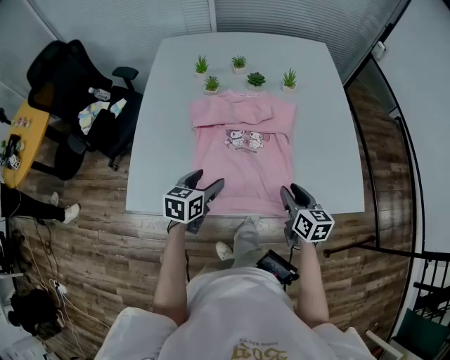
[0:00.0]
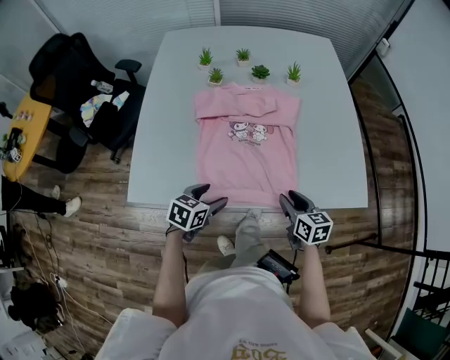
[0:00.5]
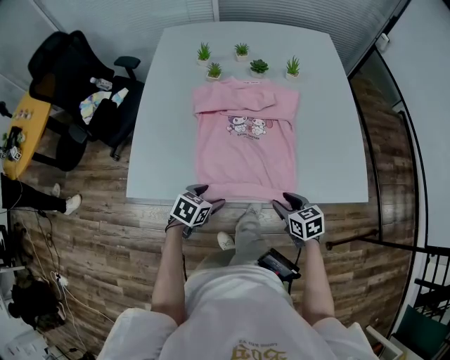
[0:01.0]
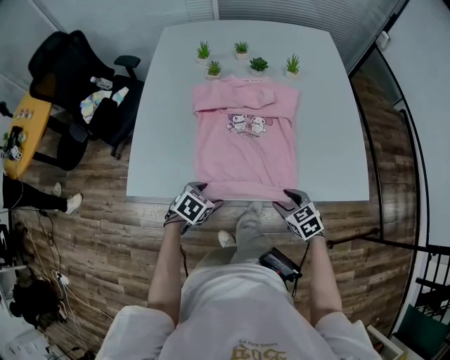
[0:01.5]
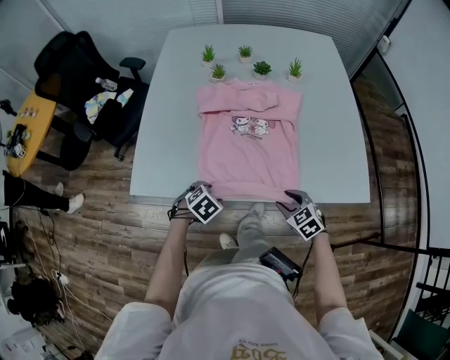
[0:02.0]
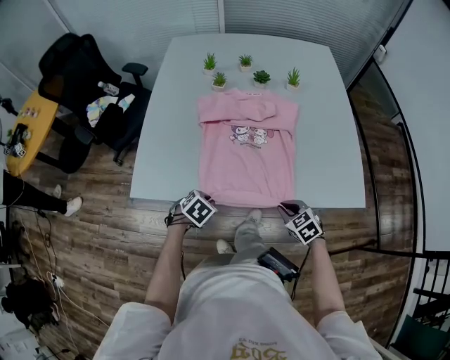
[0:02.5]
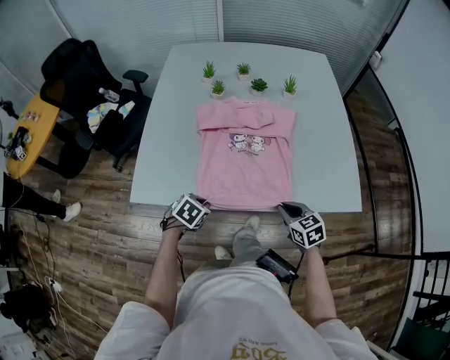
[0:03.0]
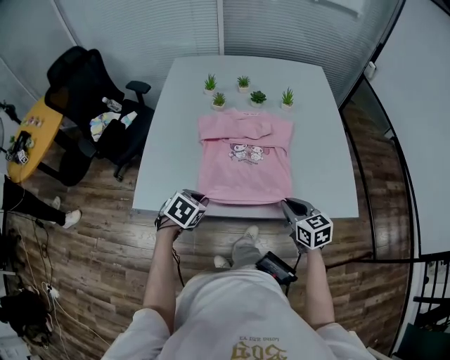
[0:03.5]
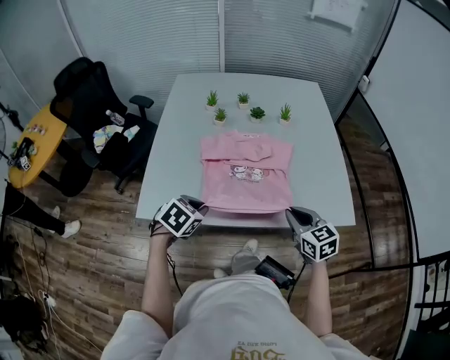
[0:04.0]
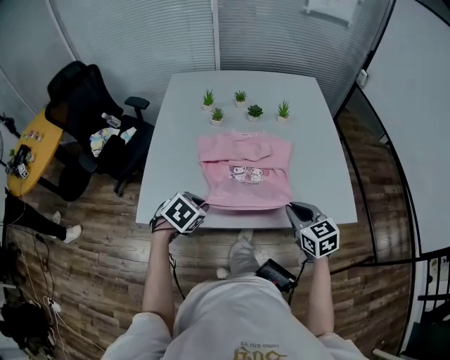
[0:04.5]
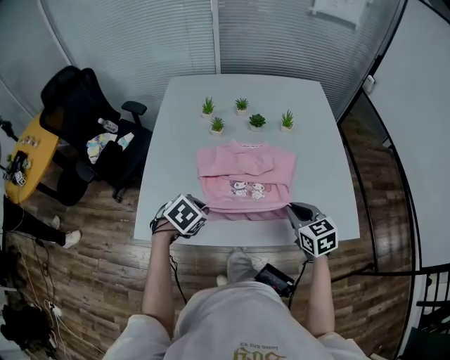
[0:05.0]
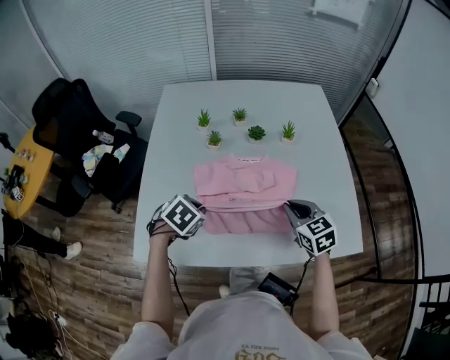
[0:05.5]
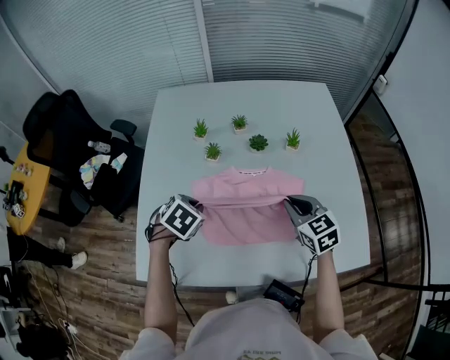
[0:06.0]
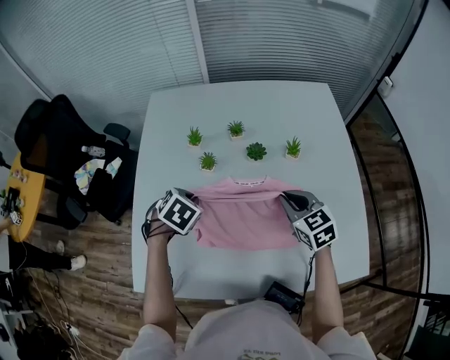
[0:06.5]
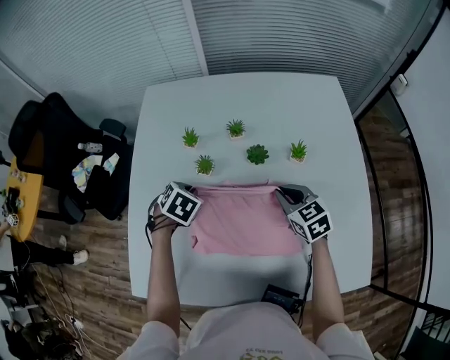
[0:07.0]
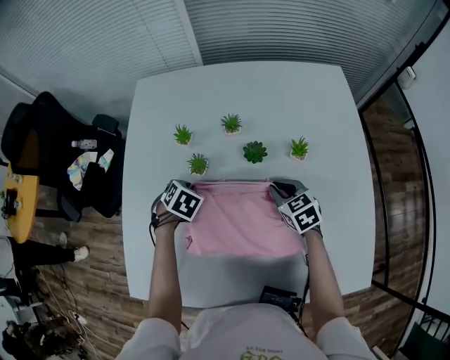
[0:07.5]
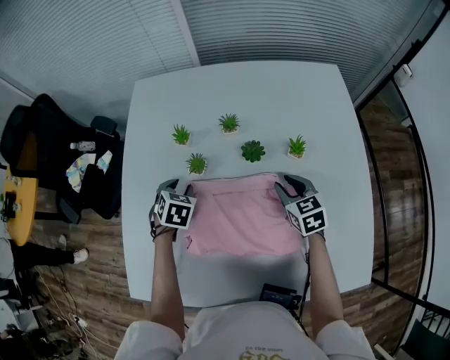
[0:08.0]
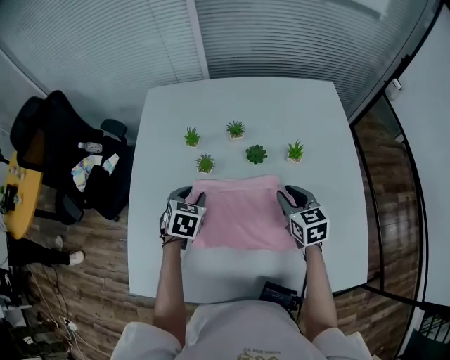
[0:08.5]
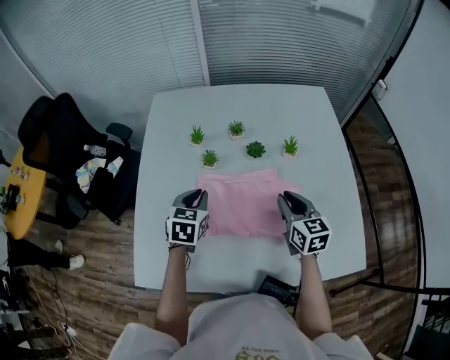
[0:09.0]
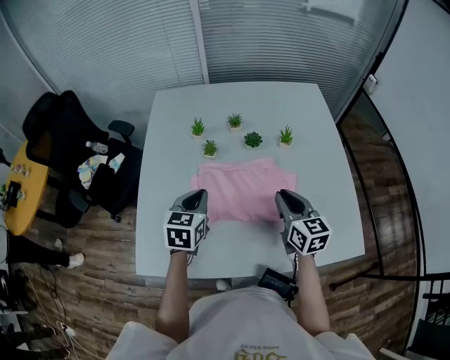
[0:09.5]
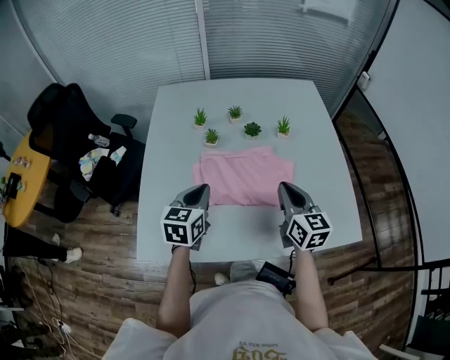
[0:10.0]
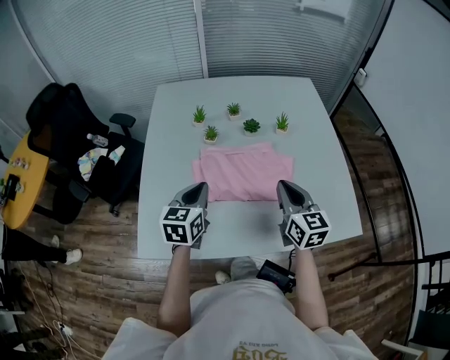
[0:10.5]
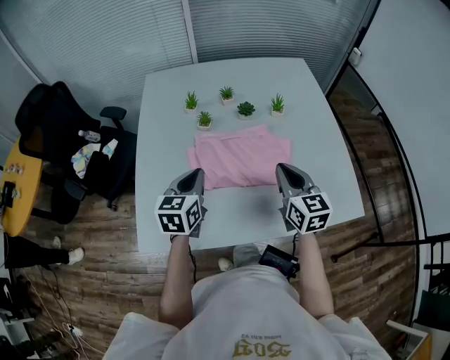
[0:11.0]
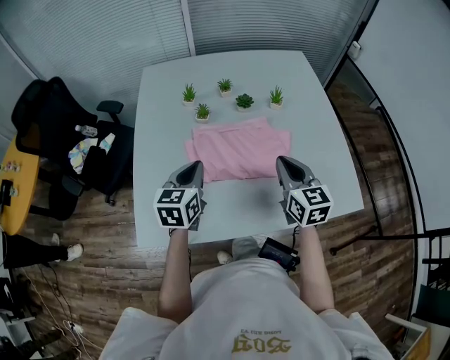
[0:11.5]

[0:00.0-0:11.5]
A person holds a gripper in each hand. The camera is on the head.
0:00.0 to 0:02.0: The grippers both shift downward and backward by about 15 cm. The left gripper angles its fingers downward, by some 40 degrees. Meanwhile the right gripper rotates around the line of its fingers by roughly 40 degrees, counterclockwise from behind.
0:02.0 to 0:04.0: The grippers both shift upward by some 20 cm. The left gripper closes. Meanwhile the right gripper changes its angle by some 30 degrees, and closes up.
0:04.0 to 0:06.0: Both grippers travel together forward, roughly 25 cm.
0:06.0 to 0:07.5: Both grippers travel together forward and downward, roughly 20 cm.
0:07.5 to 0:09.5: The left gripper moves upward and backward, approximately 25 cm, and angles its fingers upward, by approximately 40 degrees, while the right gripper moves backward and upward, approximately 25 cm, and turns by some 30 degrees.
0:09.5 to 0:11.5: Both grippers move backward, roughly 5 cm.

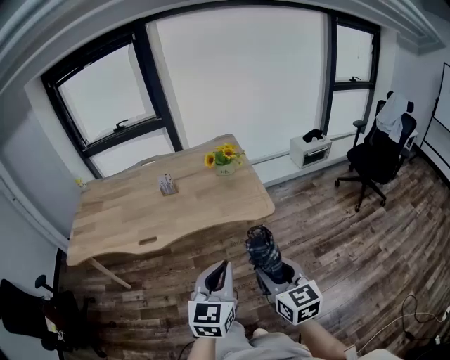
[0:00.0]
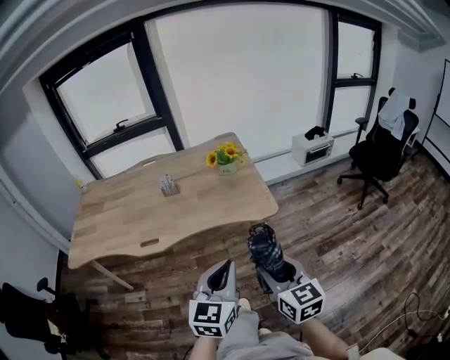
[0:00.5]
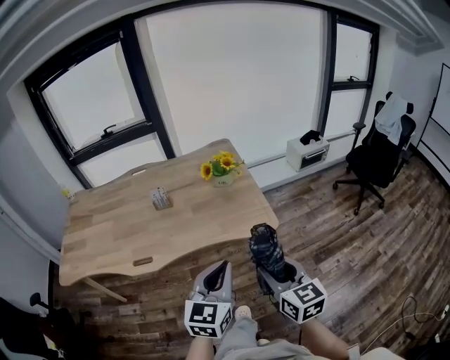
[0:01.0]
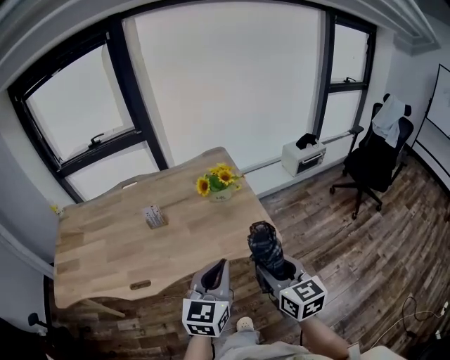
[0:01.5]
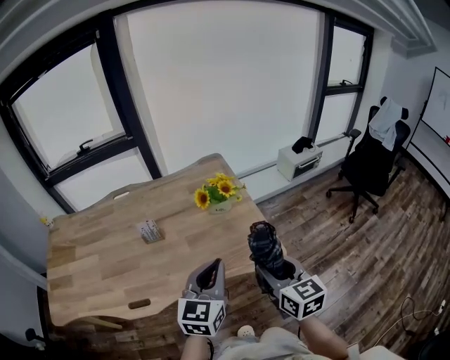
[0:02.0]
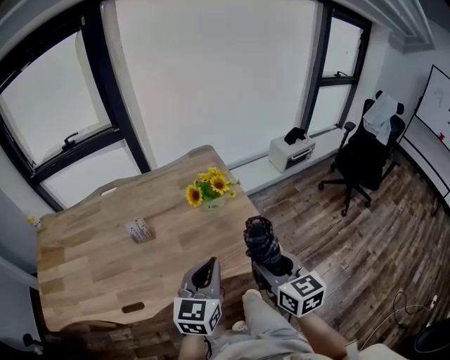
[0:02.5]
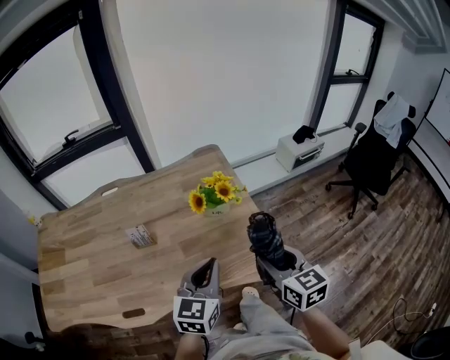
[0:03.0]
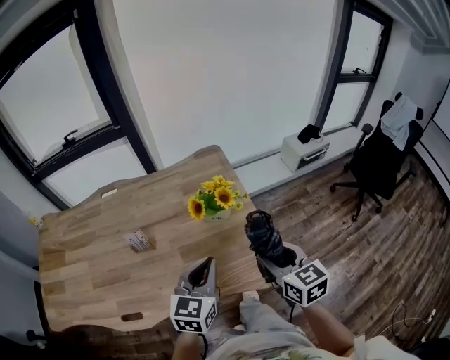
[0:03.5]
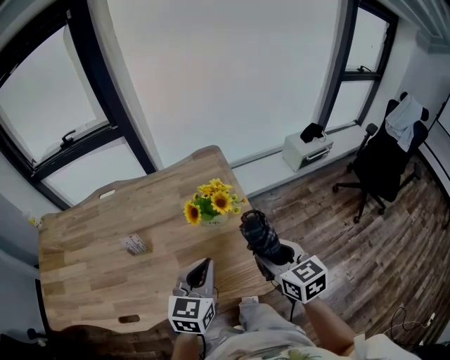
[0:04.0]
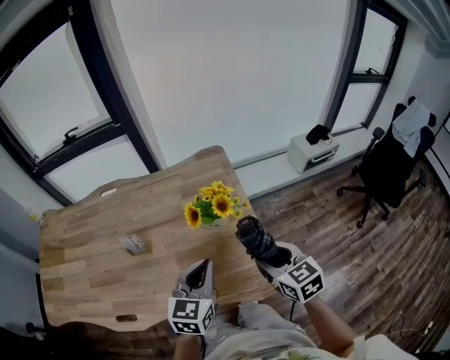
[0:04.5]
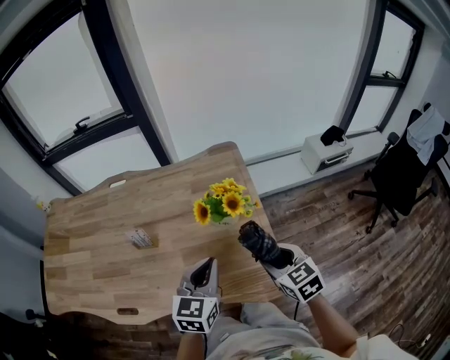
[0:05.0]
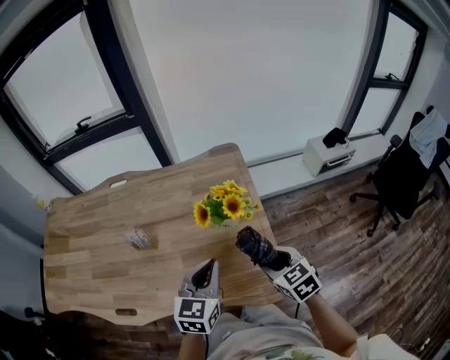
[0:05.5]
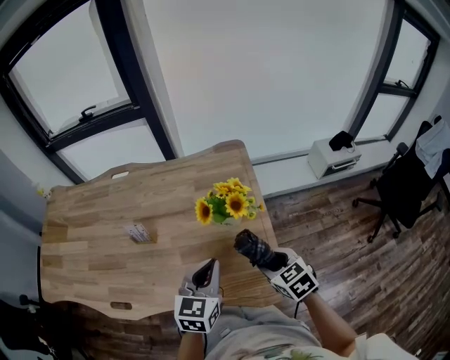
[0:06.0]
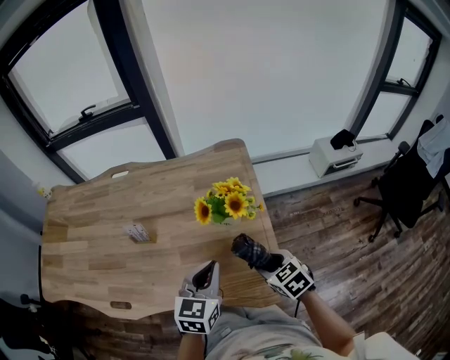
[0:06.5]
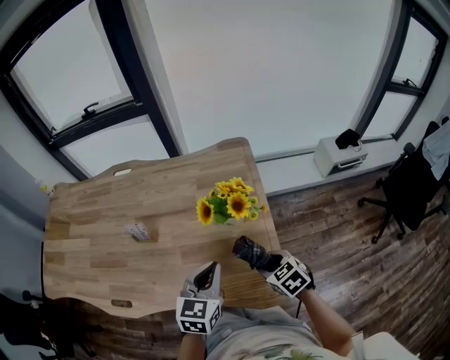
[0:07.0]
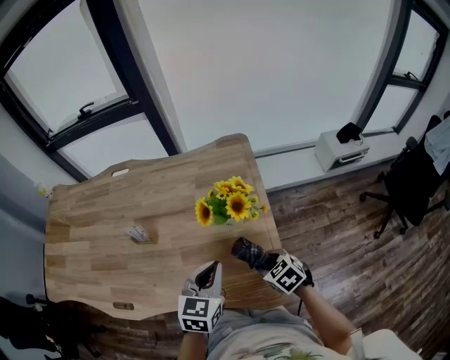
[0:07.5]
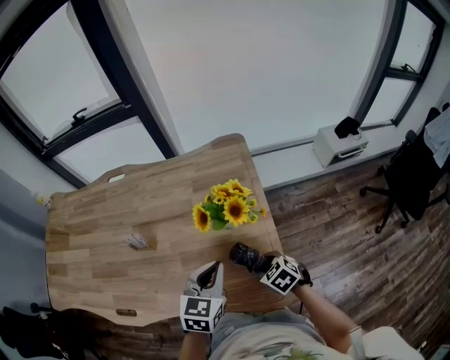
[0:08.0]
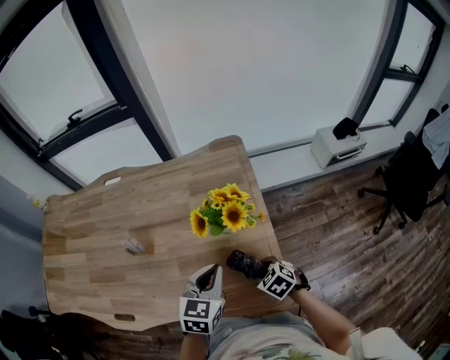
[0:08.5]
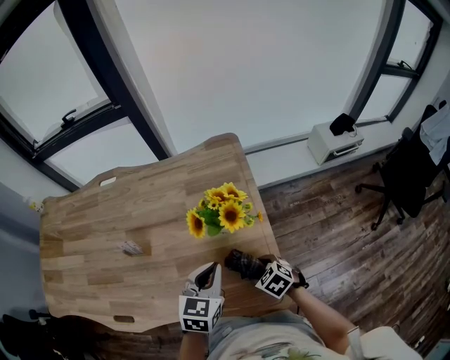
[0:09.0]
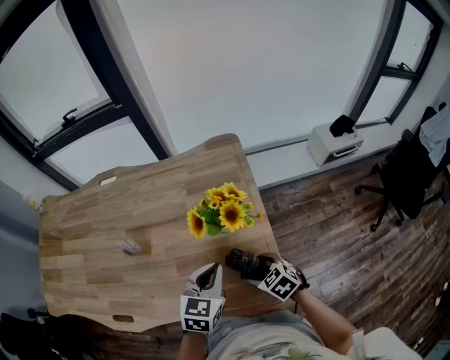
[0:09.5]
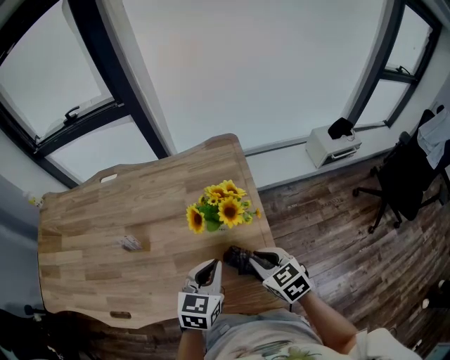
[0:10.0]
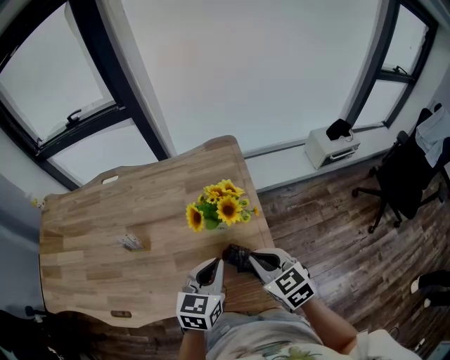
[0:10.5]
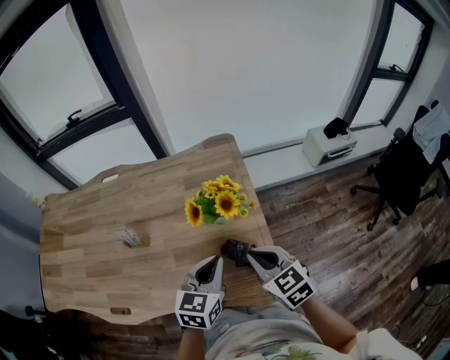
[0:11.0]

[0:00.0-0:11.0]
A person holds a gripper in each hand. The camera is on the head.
0:00.0 to 0:02.0: Both grippers move forward, roughly 30 cm.
0:02.0 to 0:03.5: Both grippers move forward, about 15 cm.
0:03.5 to 0:05.5: The right gripper goes approximately 10 cm downward and forward, and rotates roughly 30 degrees. Meanwhile the left gripper goes roughly 5 cm forward.
0:05.5 to 0:07.5: The left gripper shifts by some 5 cm; the right gripper shifts approximately 10 cm downward.
0:07.5 to 0:09.0: The right gripper heads downward, covering roughly 5 cm.
0:09.0 to 0:11.0: The left gripper moves roughly 5 cm. Meanwhile the right gripper is displaced upward by about 20 cm, turns by some 30 degrees, and closes.

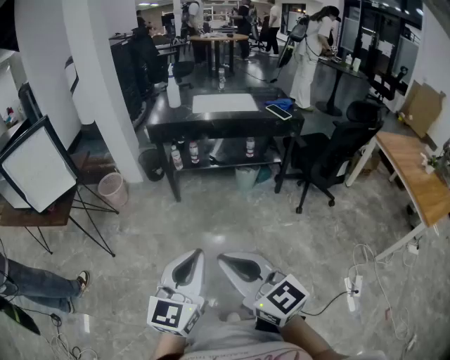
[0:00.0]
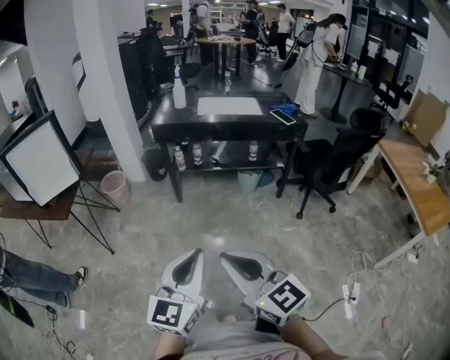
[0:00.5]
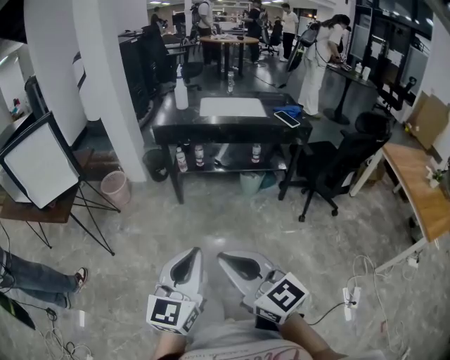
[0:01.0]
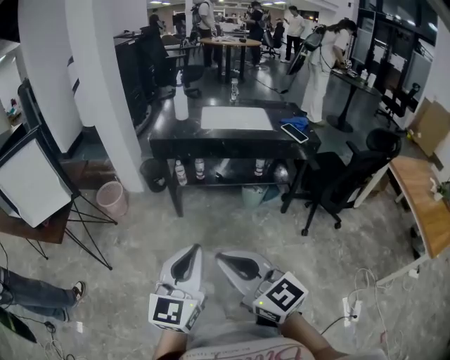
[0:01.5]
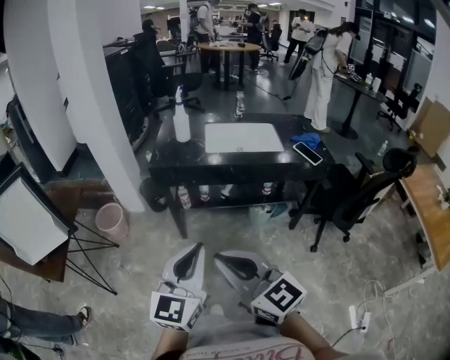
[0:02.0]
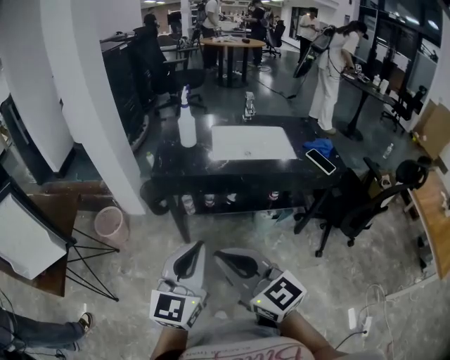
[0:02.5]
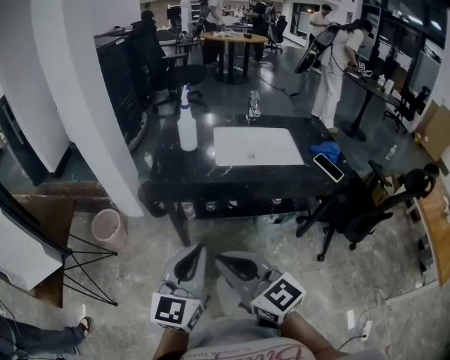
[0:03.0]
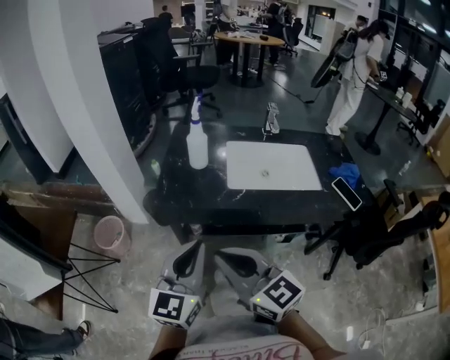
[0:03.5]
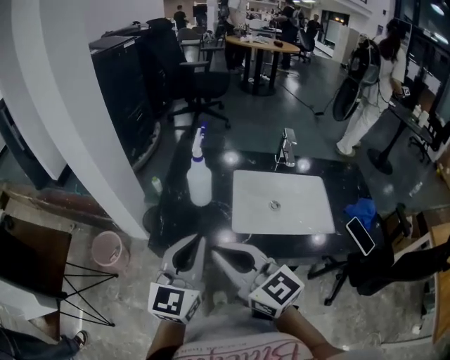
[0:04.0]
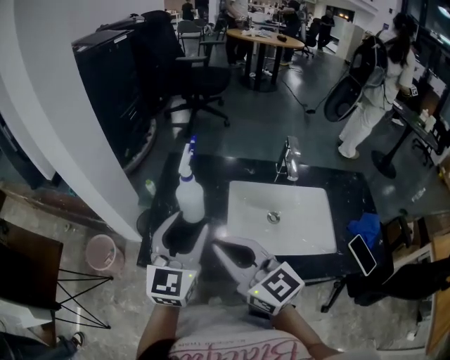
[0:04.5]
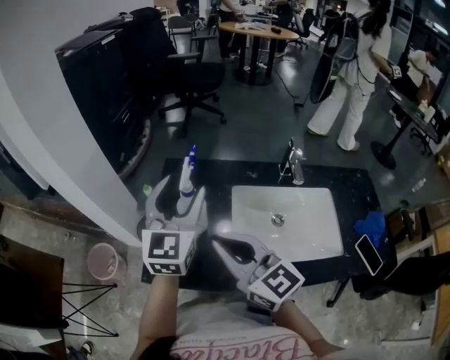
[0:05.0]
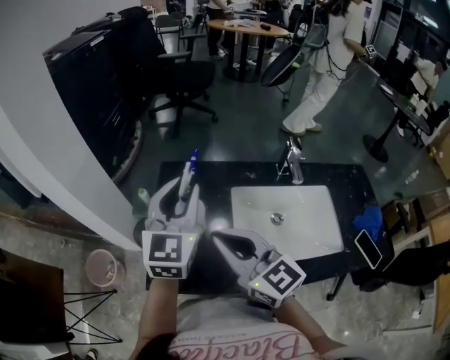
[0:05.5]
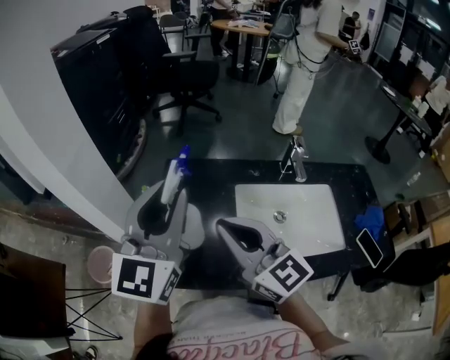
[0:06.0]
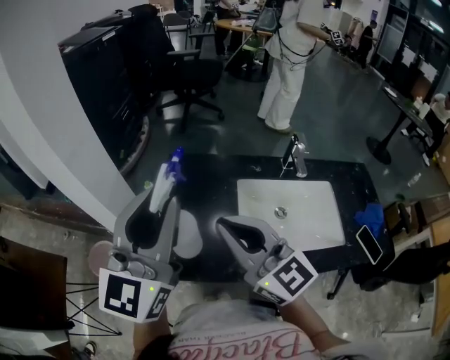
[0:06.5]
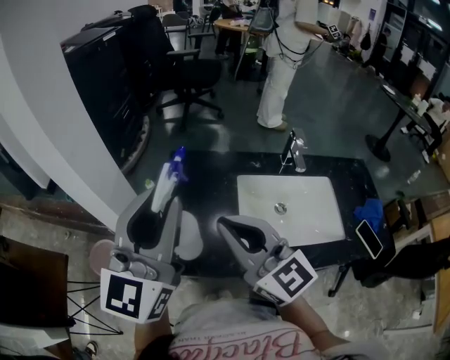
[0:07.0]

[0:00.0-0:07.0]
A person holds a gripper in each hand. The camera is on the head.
0:00.0 to 0:02.0: Both grippers travel together forward, about 30 cm.
0:02.0 to 0:03.5: Both grippers travel together forward, some 25 cm.
0:03.5 to 0:05.0: The grippers both shift forward by some 30 cm. The left gripper opens up.
0:05.0 to 0:07.0: The right gripper goes about 5 cm upward. The left gripper travels backward, upward and to the left by about 15 cm, and closes.
